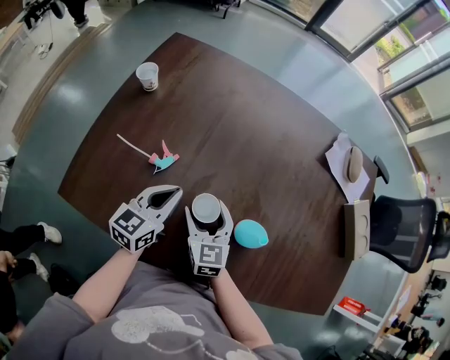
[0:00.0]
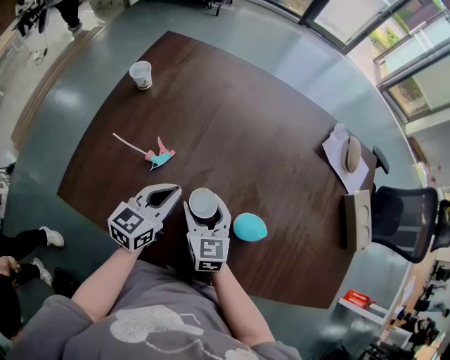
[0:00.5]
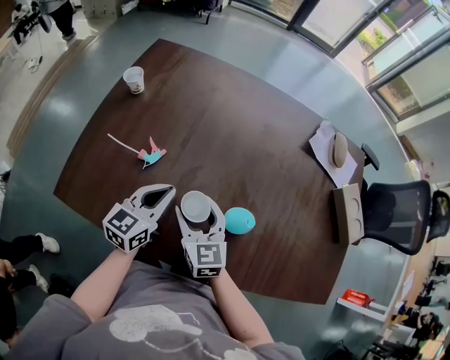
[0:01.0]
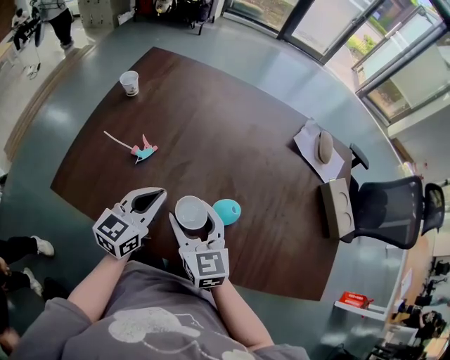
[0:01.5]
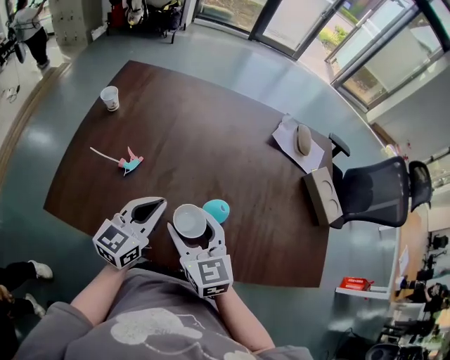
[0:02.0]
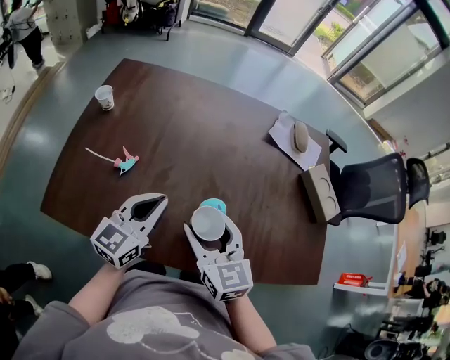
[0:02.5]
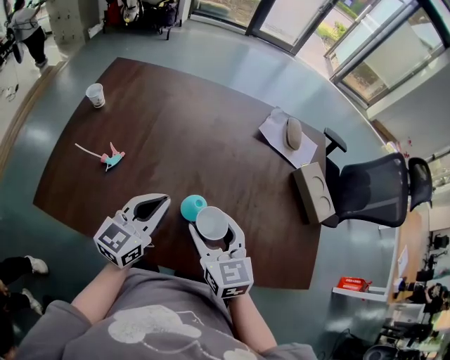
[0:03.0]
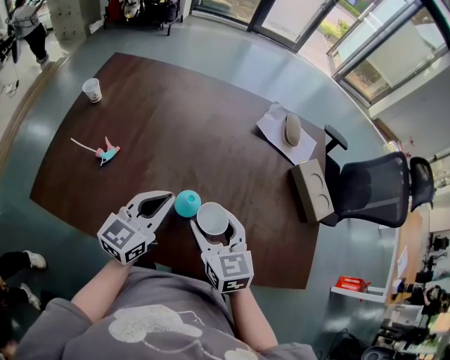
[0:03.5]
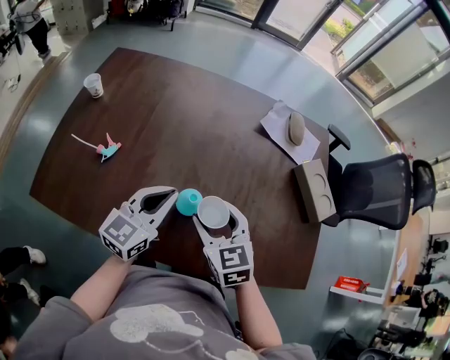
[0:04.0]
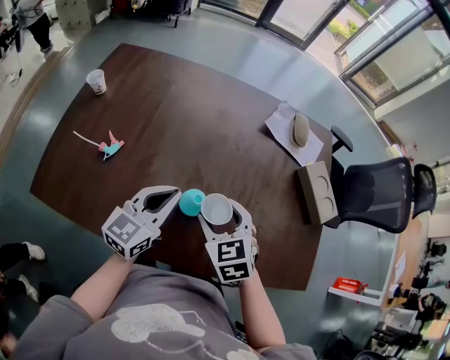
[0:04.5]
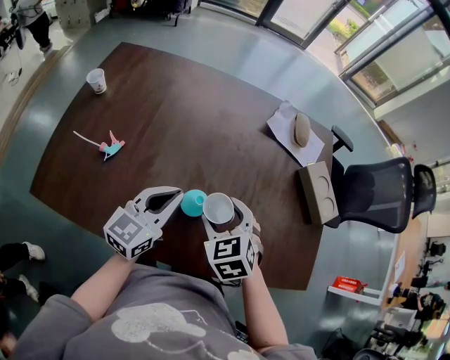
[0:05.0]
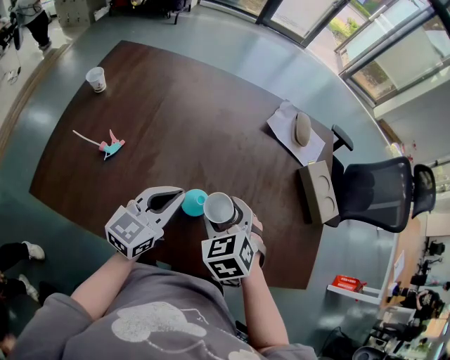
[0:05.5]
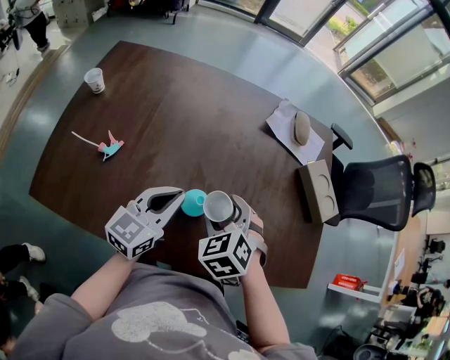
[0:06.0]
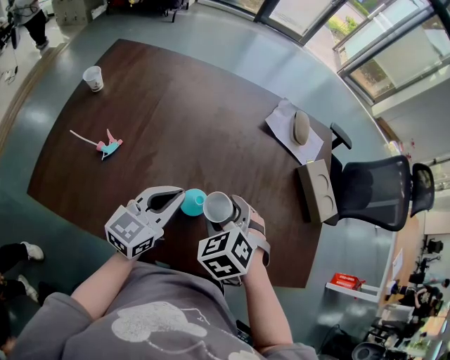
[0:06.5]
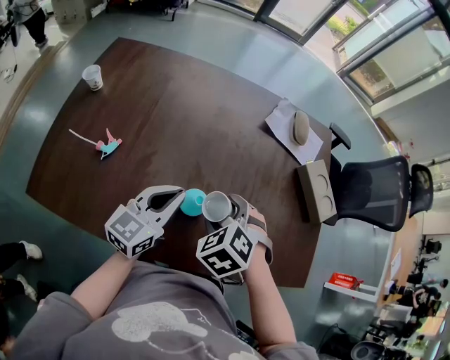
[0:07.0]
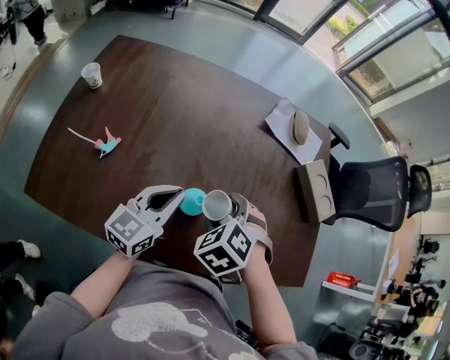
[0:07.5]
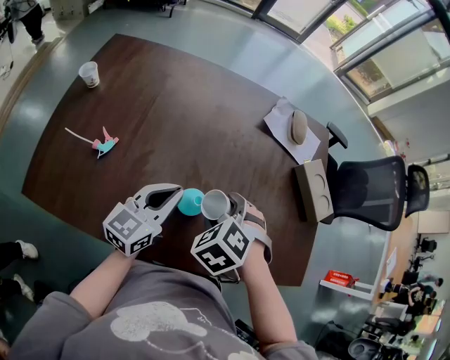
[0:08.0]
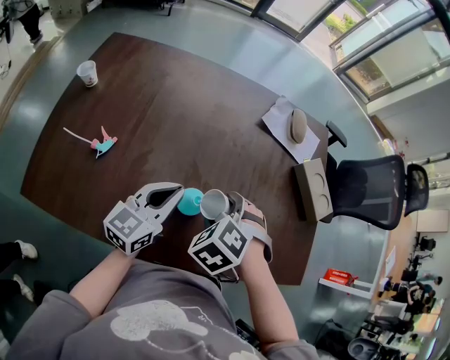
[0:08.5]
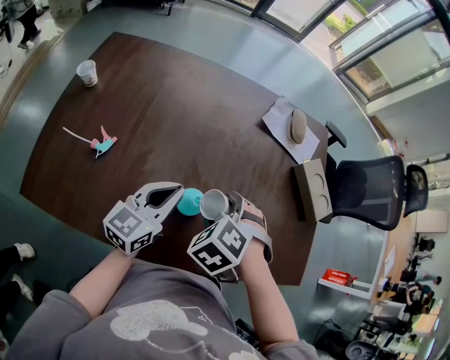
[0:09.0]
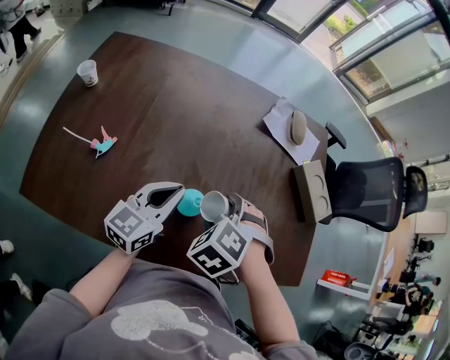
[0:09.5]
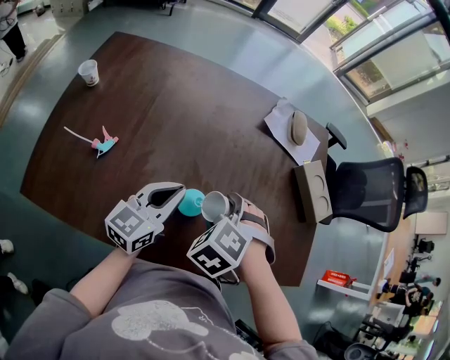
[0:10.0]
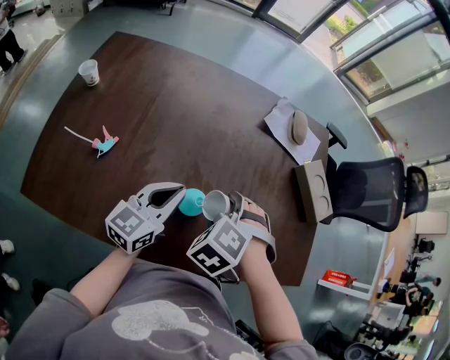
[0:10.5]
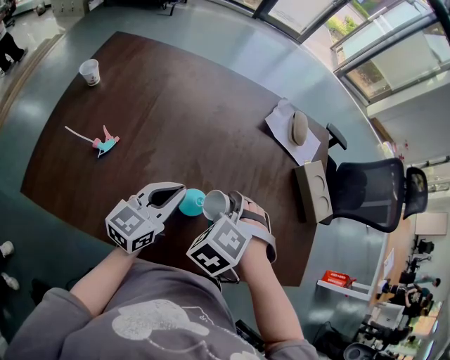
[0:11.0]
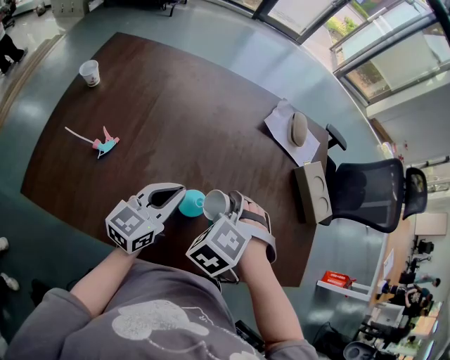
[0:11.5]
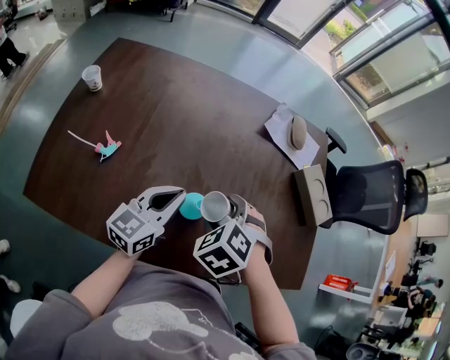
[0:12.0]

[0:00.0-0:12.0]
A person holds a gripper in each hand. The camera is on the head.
0:00.0 to 0:02.0: The right gripper goes some 15 cm upward and backward. Meanwhile the left gripper travels upward, to the right and backward by some 15 cm.
0:02.0 to 0:04.0: The grippers both shift to the right by some 15 cm.
0:04.0 to 0:06.0: The right gripper swivels some 30 degrees.
0:06.0 to 0:08.0: The grippers make only small movements.
0:08.0 to 0:12.0: There are only small adjustments of the grippers.

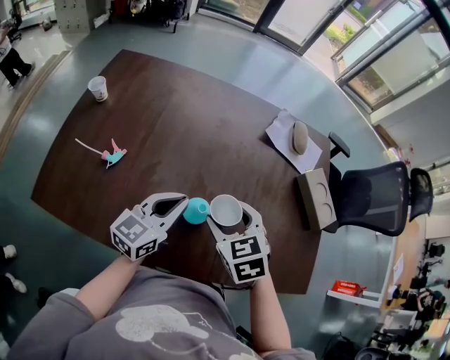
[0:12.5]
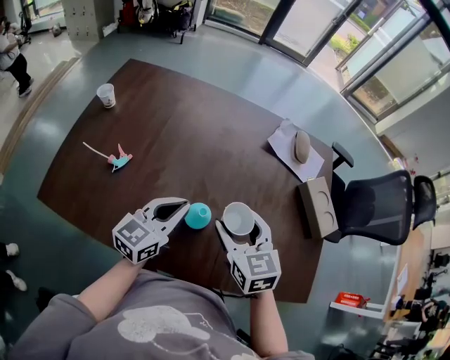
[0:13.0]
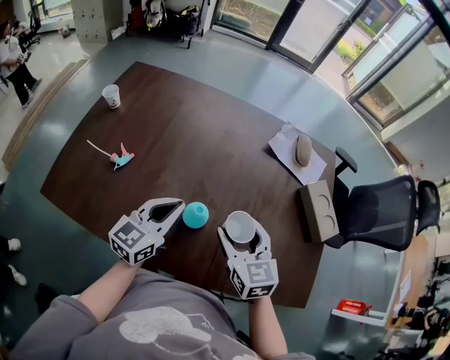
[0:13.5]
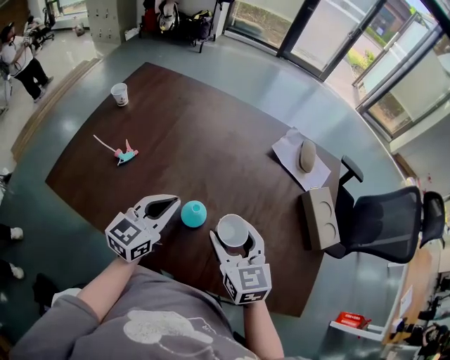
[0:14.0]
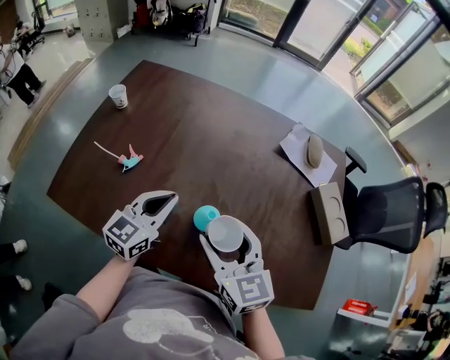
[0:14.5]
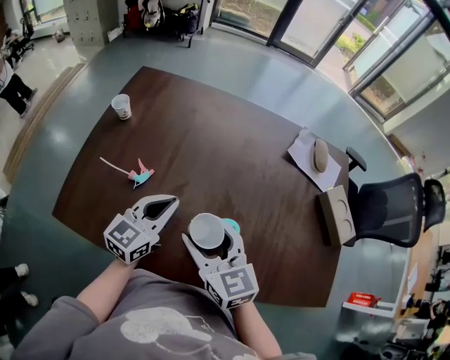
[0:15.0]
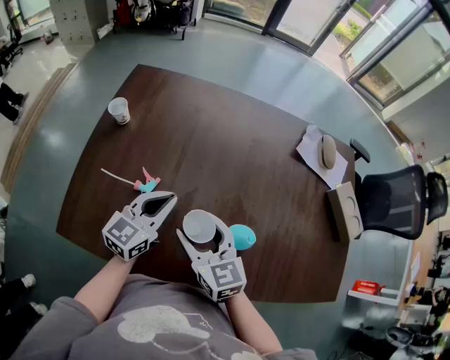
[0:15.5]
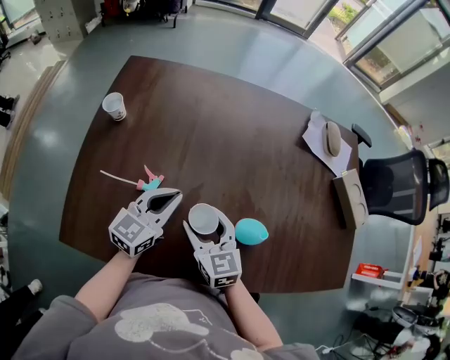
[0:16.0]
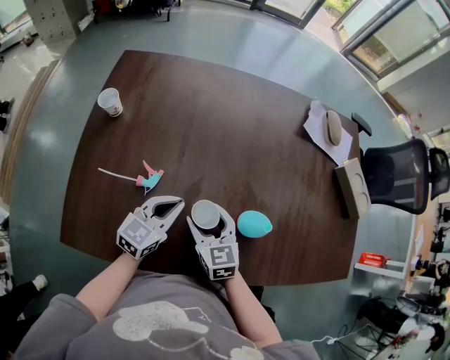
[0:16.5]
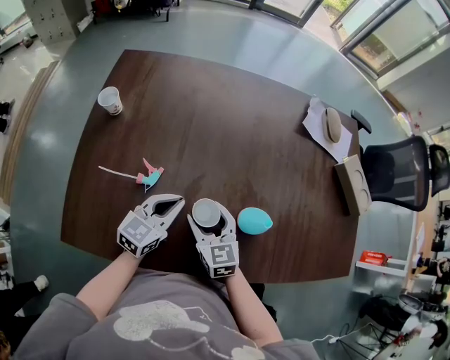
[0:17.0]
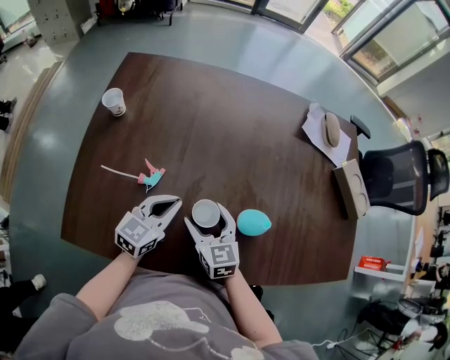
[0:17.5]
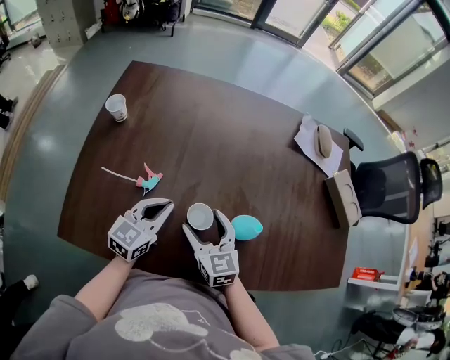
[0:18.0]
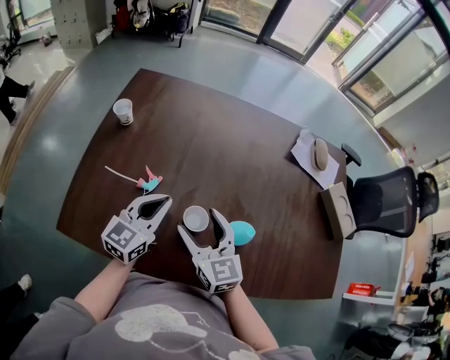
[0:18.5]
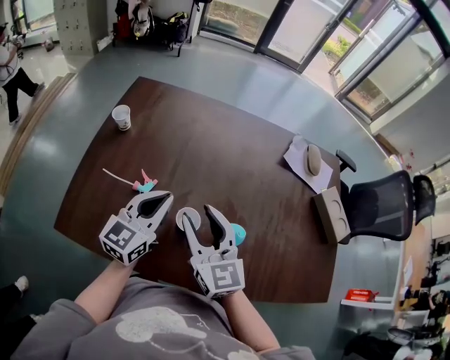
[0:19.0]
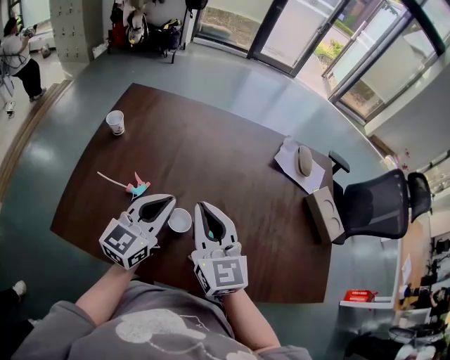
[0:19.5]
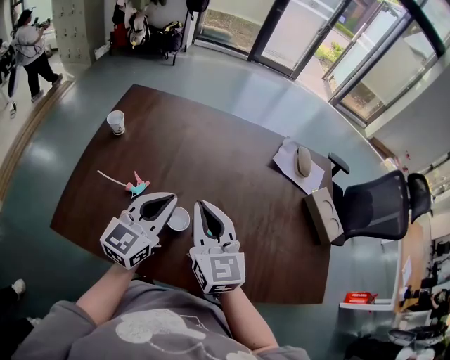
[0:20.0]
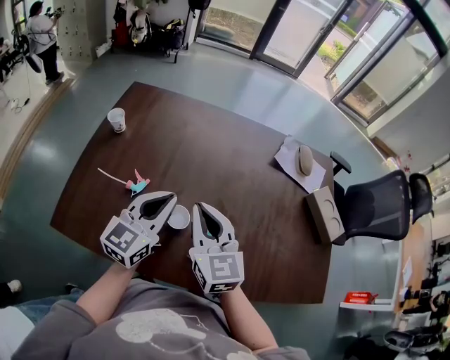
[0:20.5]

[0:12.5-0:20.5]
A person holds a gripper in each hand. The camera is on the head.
0:12.5 to 0:14.5: The right gripper travels upward by some 5 cm, and rotates about 30 degrees, while the left gripper moves to the left, about 5 cm.
0:14.5 to 0:16.5: The right gripper moves to the left and downward, roughly 25 cm. The left gripper heads to the left and downward, covering about 15 cm.
0:16.5 to 0:18.5: Both grippers travel together upward, about 10 cm.
0:18.5 to 0:20.5: The right gripper is displaced upward by about 10 cm, and closes its fingers, while the left gripper goes approximately 10 cm upward and to the right.

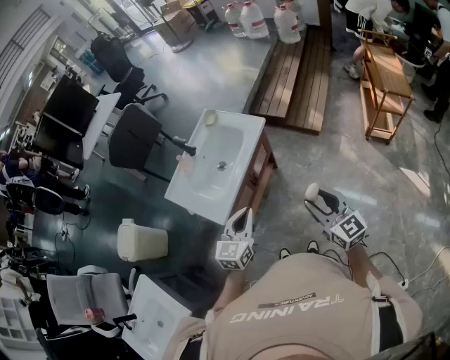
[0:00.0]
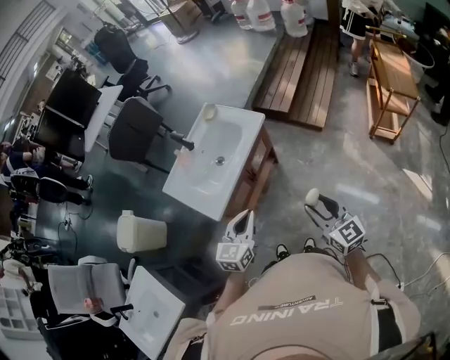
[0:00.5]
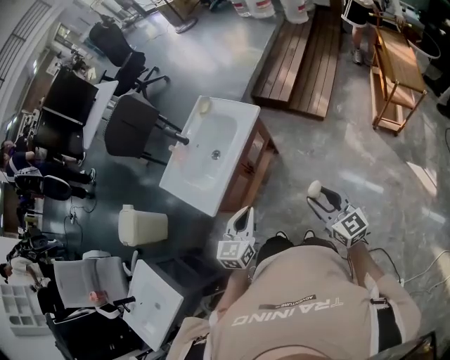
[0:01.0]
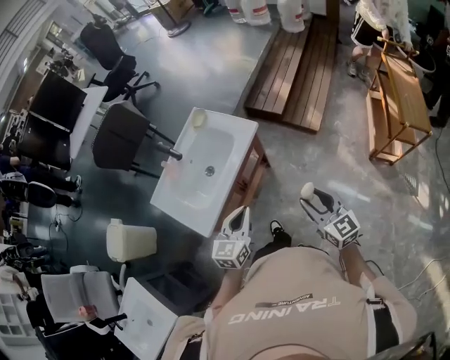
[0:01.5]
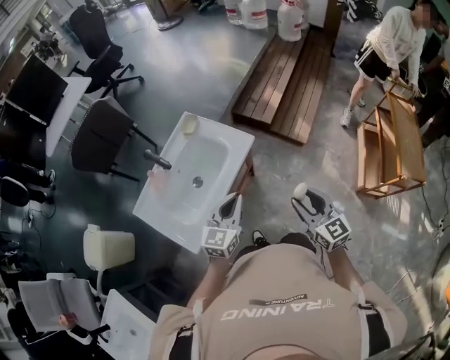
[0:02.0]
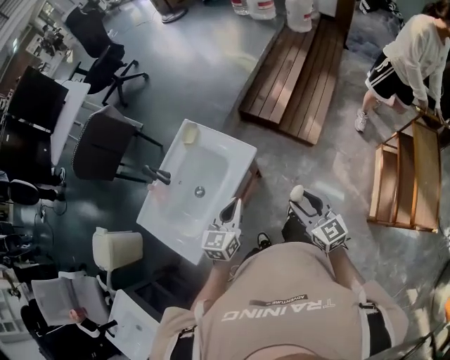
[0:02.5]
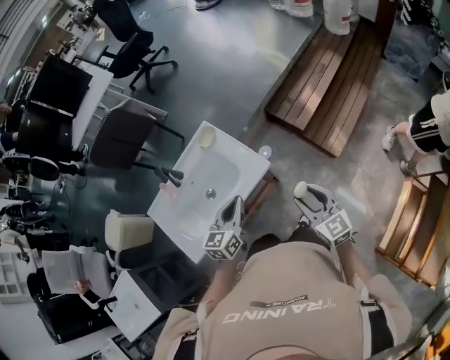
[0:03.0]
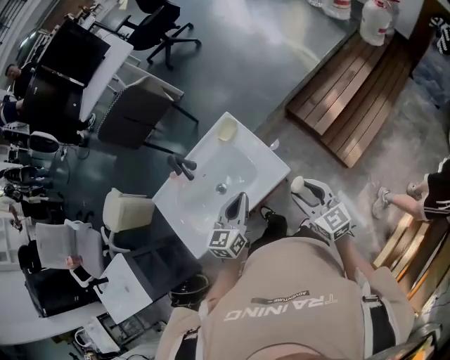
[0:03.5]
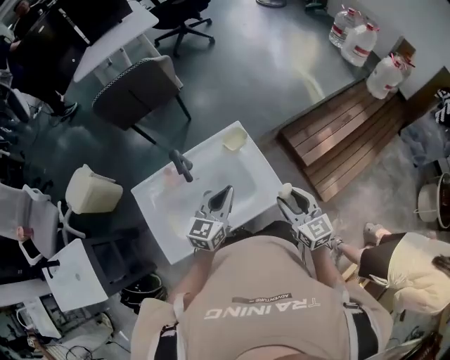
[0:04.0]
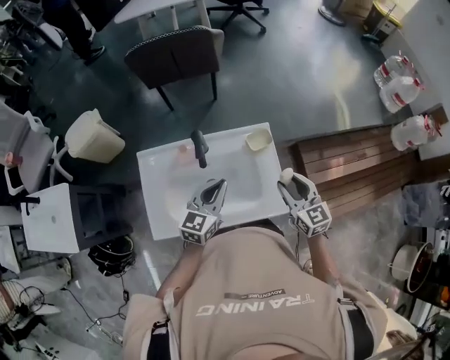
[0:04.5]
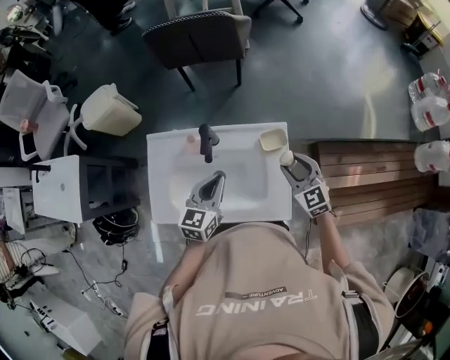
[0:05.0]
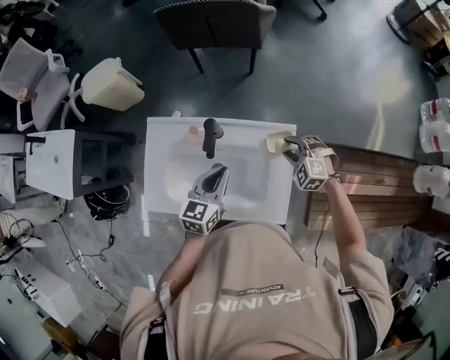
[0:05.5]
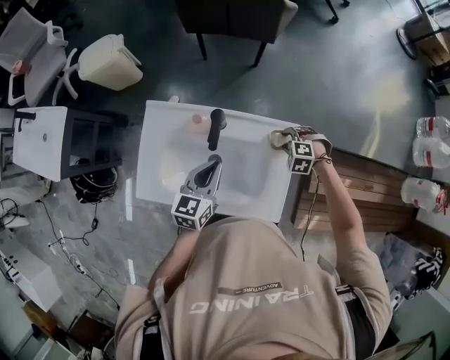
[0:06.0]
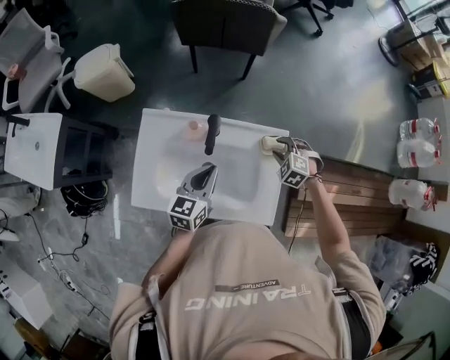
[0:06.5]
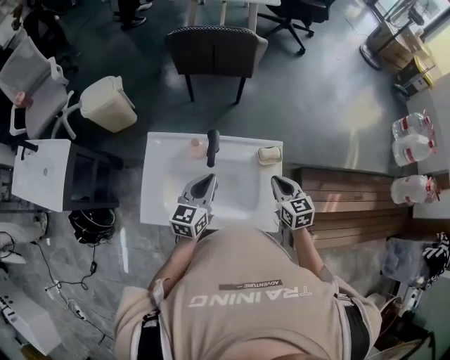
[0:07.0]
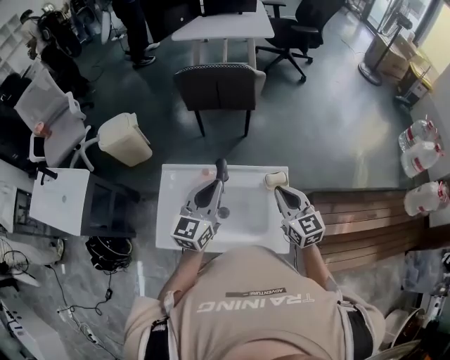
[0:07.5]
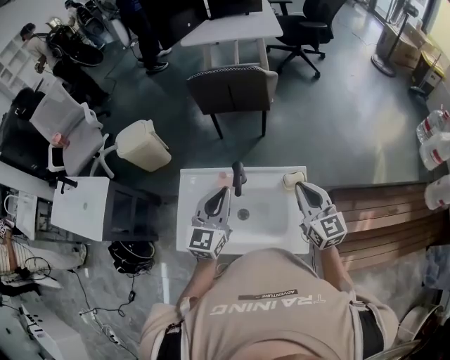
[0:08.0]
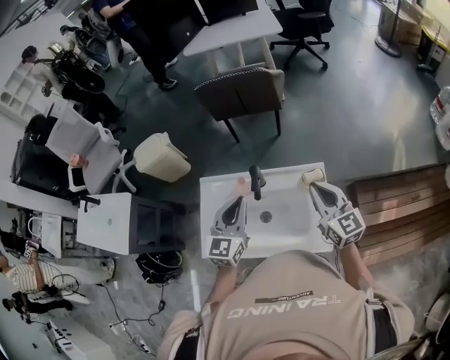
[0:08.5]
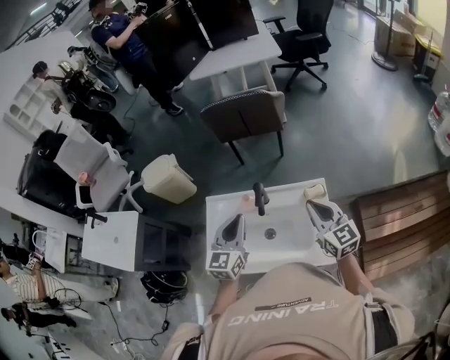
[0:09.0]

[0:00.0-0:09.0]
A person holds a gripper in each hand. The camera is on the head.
0:00.0 to 0:02.0: Both grippers travel together forward, roughly 20 cm.
0:02.0 to 0:04.5: The right gripper changes place by approximately 40 cm, and swivels roughly 50 degrees, while the left gripper shifts by about 25 cm, and swivels about 40 degrees.
0:04.5 to 0:07.0: The right gripper moves roughly 20 cm downward and comes back, and closes up, while the left gripper shifts by roughly 5 cm.
0:07.0 to 0:09.0: The grippers both shift upward by some 10 cm. The right gripper turns by about 20 degrees.
